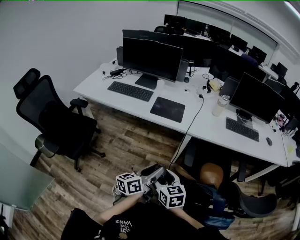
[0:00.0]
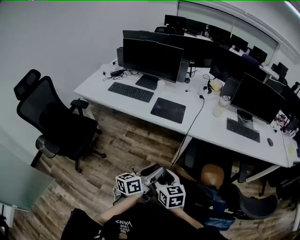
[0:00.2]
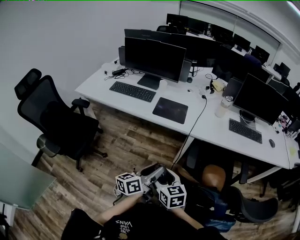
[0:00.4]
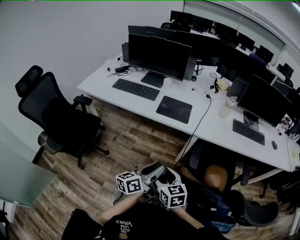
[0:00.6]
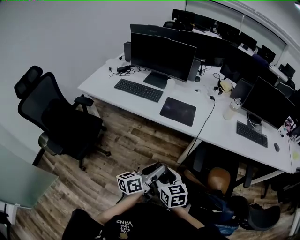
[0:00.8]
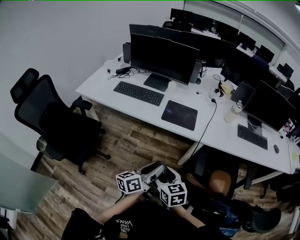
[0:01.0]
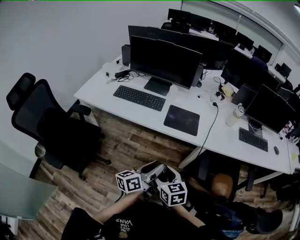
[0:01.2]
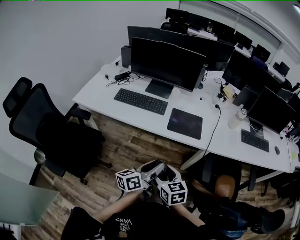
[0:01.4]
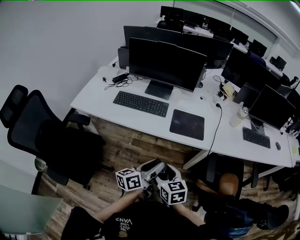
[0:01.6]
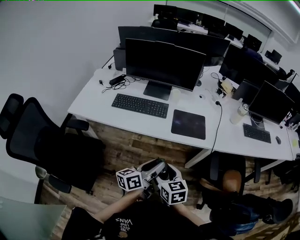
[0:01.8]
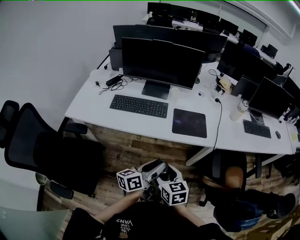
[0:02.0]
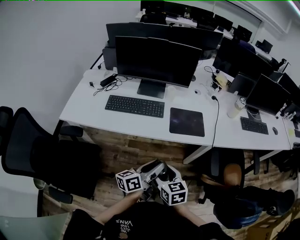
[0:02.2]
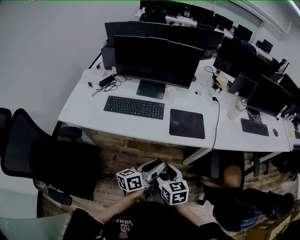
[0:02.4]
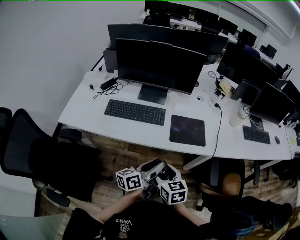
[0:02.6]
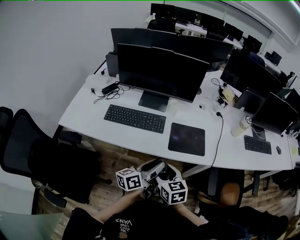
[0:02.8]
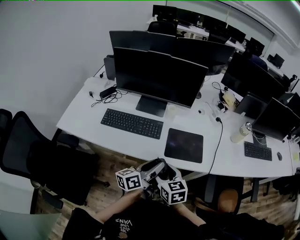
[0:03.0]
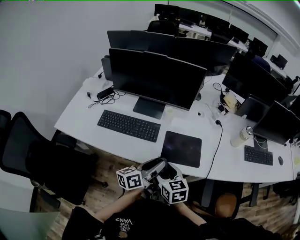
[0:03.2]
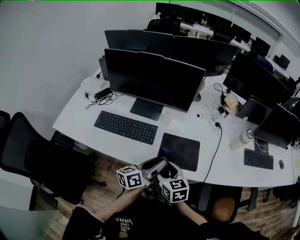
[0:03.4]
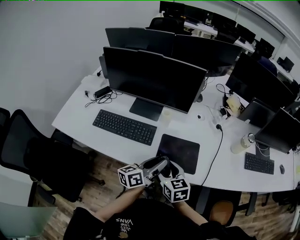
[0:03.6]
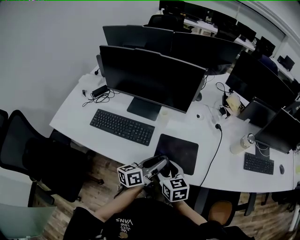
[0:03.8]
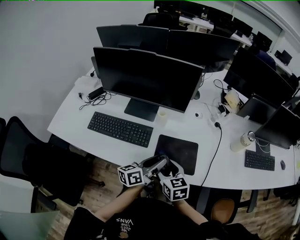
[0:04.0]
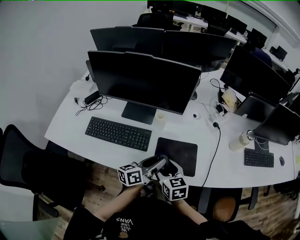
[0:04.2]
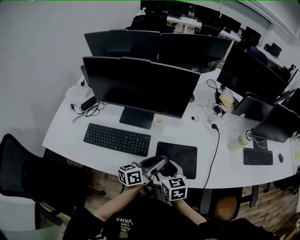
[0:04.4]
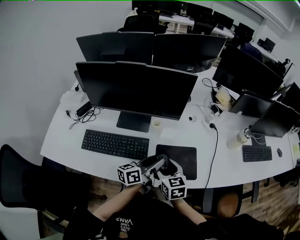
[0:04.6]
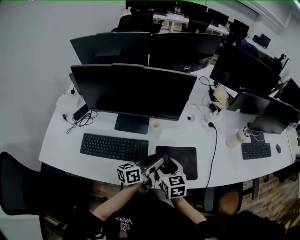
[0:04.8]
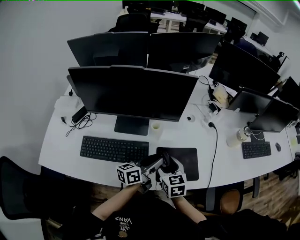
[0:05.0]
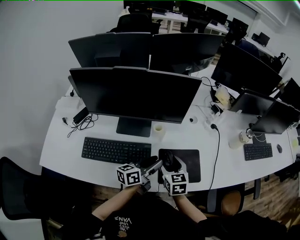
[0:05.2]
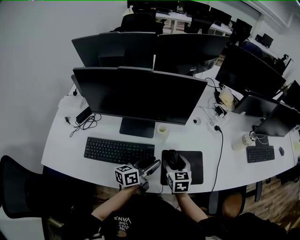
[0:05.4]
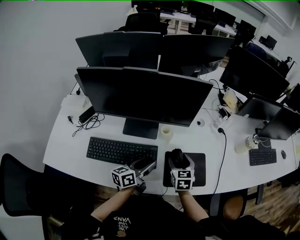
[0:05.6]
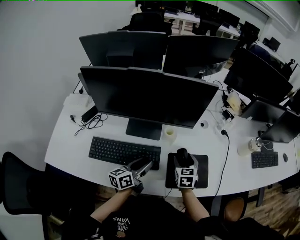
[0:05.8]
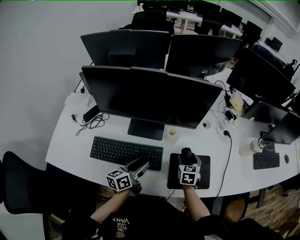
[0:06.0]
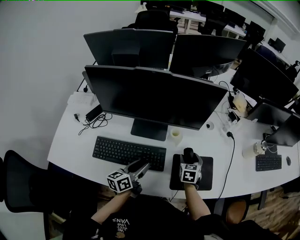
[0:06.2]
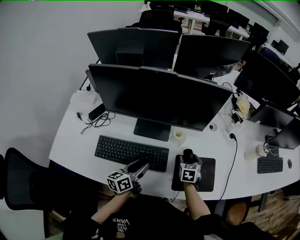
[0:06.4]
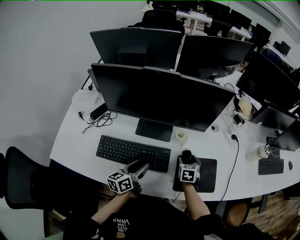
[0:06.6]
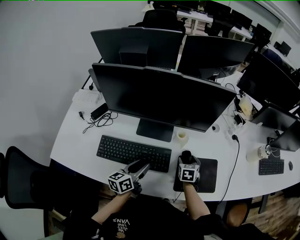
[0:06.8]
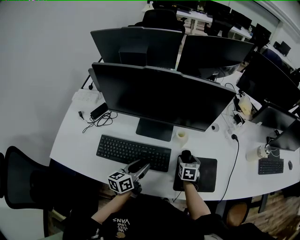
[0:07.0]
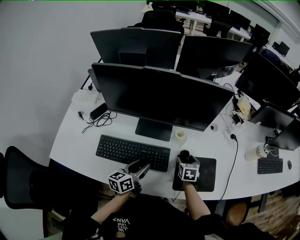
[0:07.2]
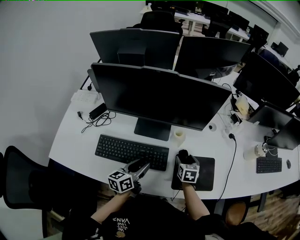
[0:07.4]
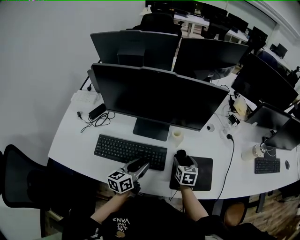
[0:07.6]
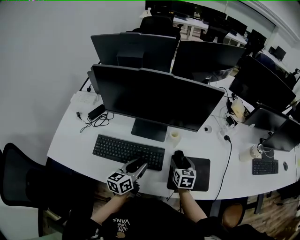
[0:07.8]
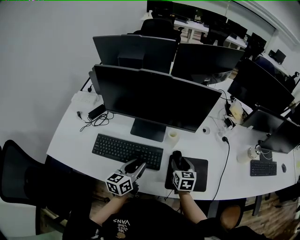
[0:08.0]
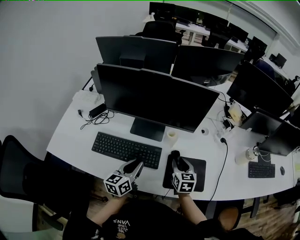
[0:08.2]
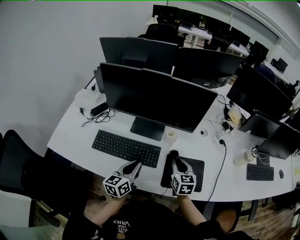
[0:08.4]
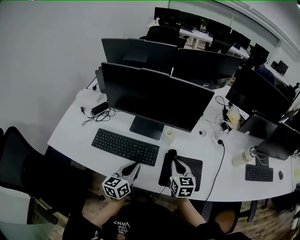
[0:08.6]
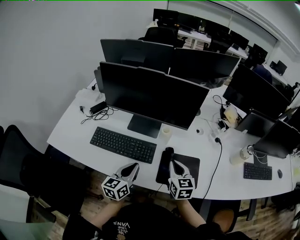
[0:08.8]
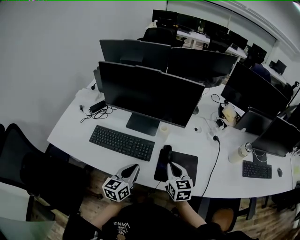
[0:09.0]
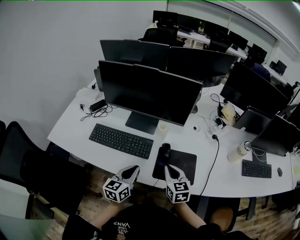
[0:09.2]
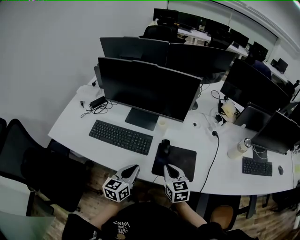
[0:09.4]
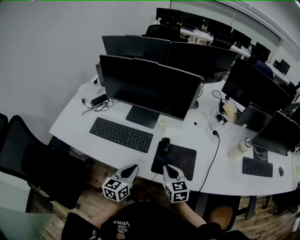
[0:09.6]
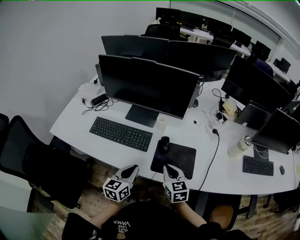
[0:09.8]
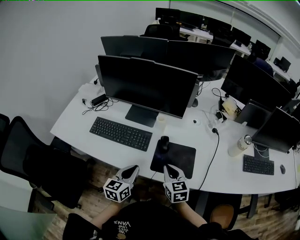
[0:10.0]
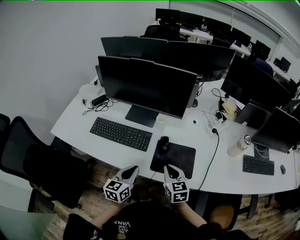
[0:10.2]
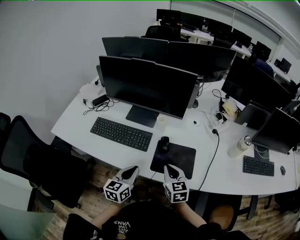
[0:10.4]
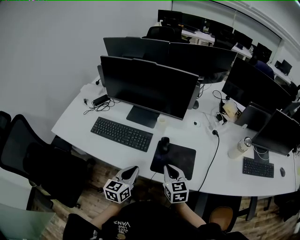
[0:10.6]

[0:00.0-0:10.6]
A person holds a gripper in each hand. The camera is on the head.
0.0 to 1.6 s: The grippers both shift to the left and forward by roughly 25 cm.
1.6 to 3.0 s: The two grippers go some 20 cm forward.
3.0 to 4.6 s: Both grippers move forward, roughly 20 cm.
4.6 to 6.0 s: The right gripper shifts approximately 15 cm forward and downward, and swivels approximately 20 degrees. The left gripper moves to the left, some 15 cm.
7.6 to 9.0 s: The right gripper is displaced upward and backward by roughly 15 cm, turns by roughly 20 degrees, and closes, while the left gripper goes roughly 10 cm backward and to the right, and closes its fingers.
9.0 to 10.6 s: The grippers both shift backward by roughly 5 cm.

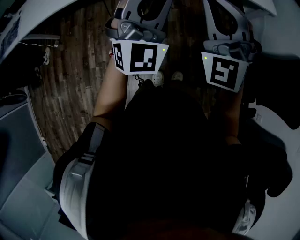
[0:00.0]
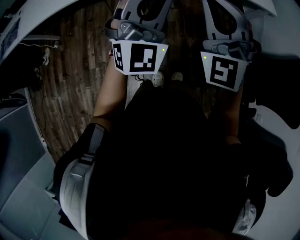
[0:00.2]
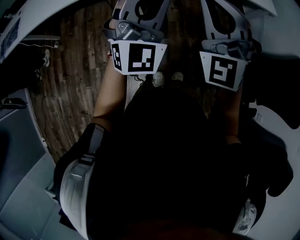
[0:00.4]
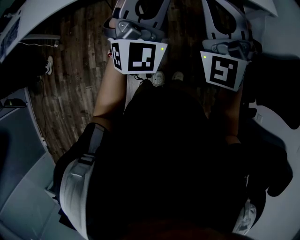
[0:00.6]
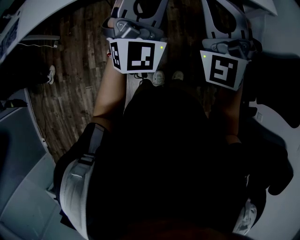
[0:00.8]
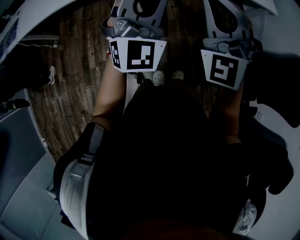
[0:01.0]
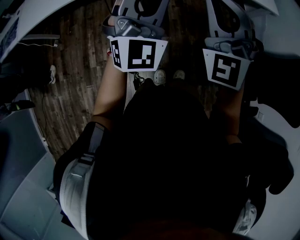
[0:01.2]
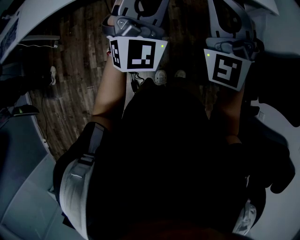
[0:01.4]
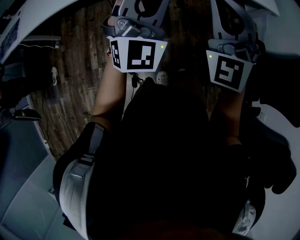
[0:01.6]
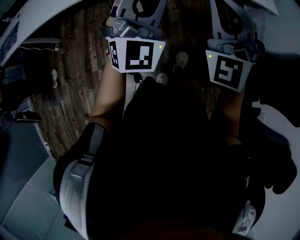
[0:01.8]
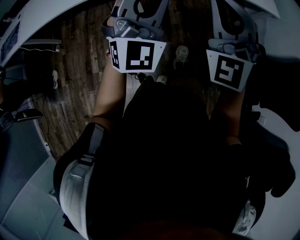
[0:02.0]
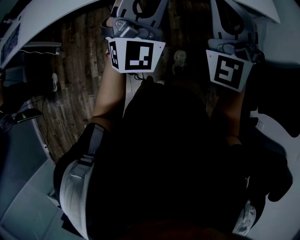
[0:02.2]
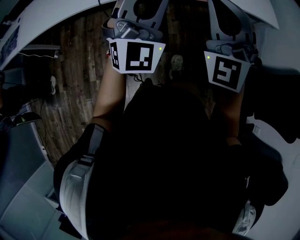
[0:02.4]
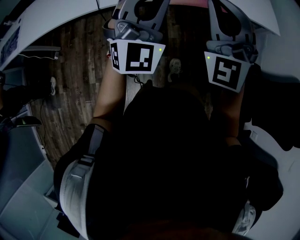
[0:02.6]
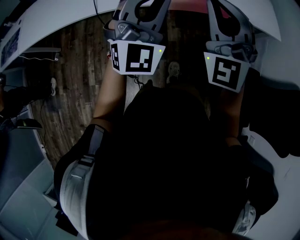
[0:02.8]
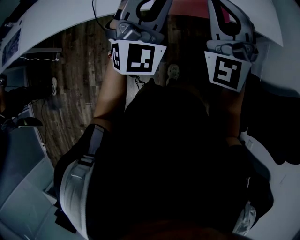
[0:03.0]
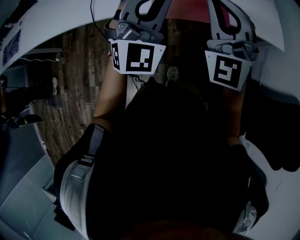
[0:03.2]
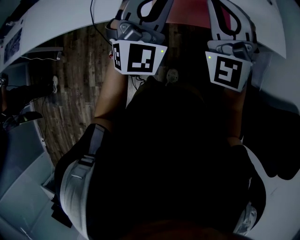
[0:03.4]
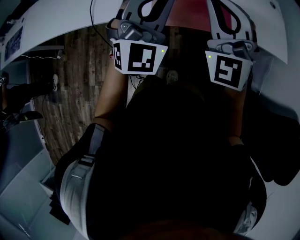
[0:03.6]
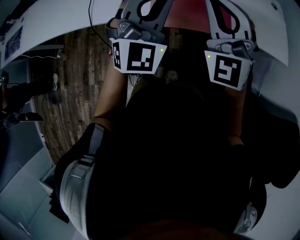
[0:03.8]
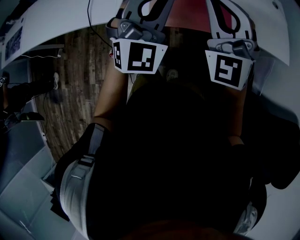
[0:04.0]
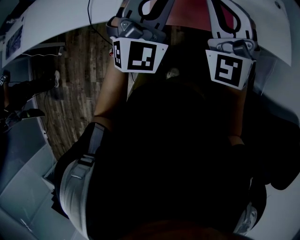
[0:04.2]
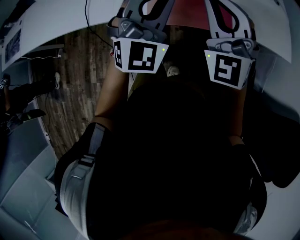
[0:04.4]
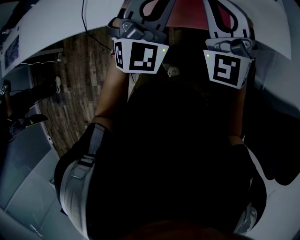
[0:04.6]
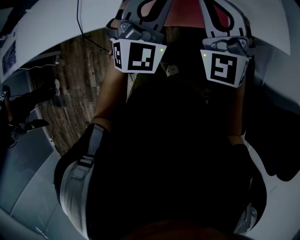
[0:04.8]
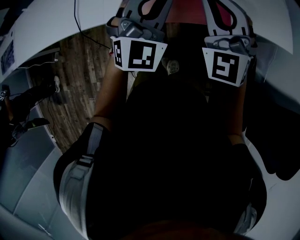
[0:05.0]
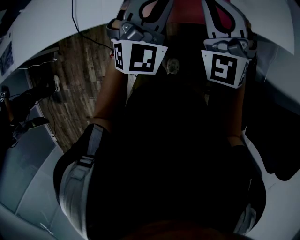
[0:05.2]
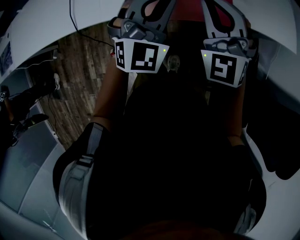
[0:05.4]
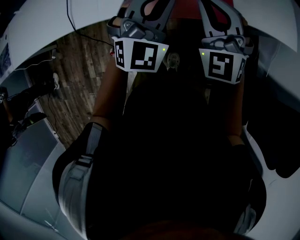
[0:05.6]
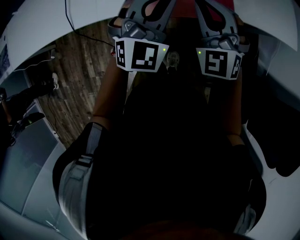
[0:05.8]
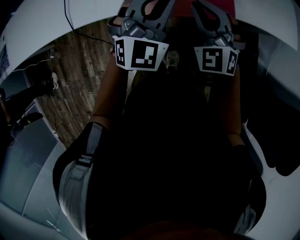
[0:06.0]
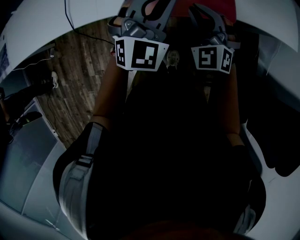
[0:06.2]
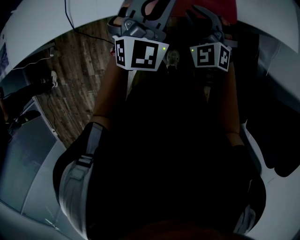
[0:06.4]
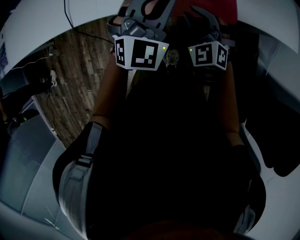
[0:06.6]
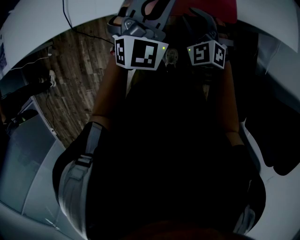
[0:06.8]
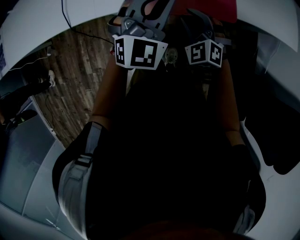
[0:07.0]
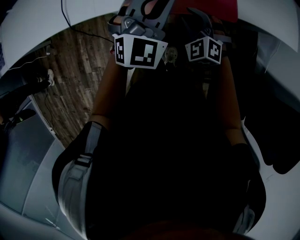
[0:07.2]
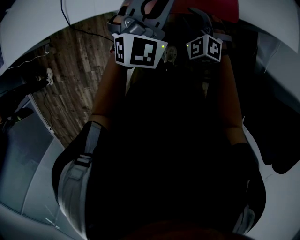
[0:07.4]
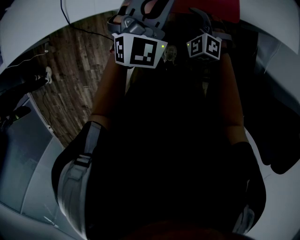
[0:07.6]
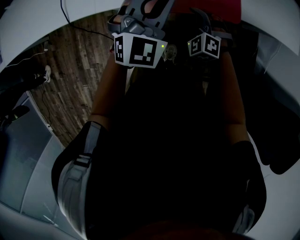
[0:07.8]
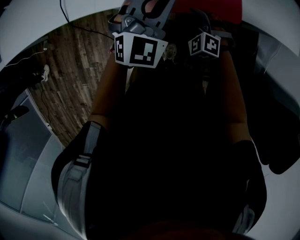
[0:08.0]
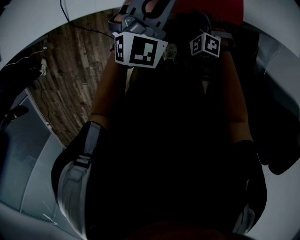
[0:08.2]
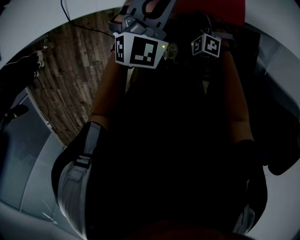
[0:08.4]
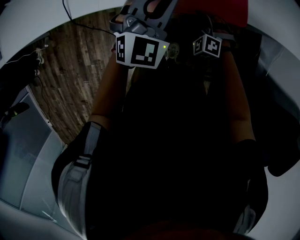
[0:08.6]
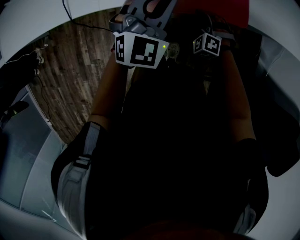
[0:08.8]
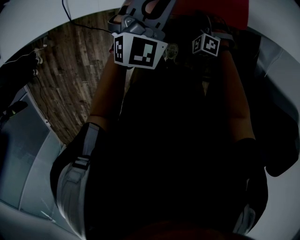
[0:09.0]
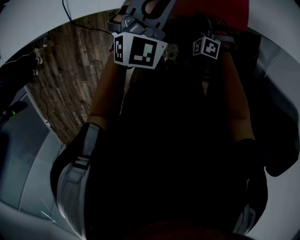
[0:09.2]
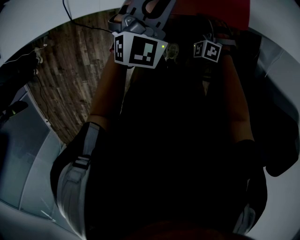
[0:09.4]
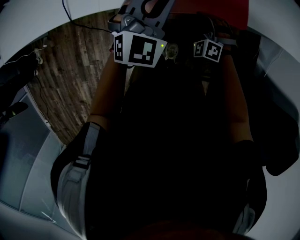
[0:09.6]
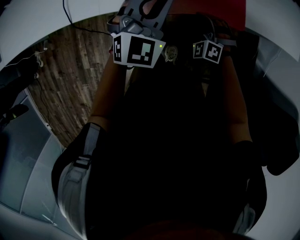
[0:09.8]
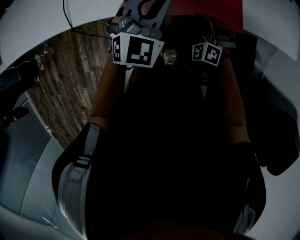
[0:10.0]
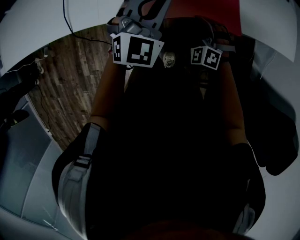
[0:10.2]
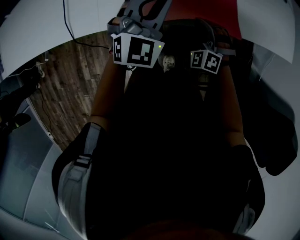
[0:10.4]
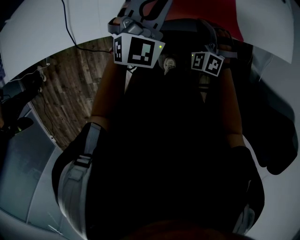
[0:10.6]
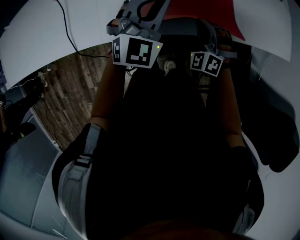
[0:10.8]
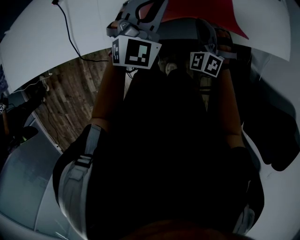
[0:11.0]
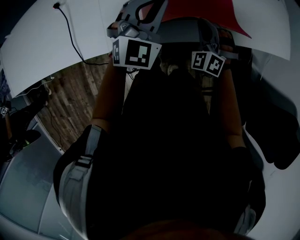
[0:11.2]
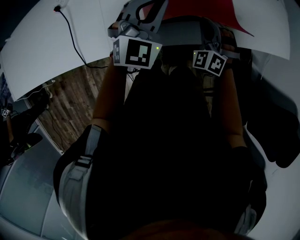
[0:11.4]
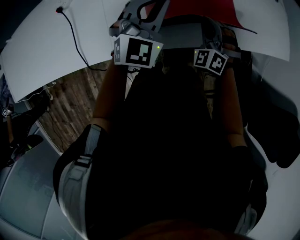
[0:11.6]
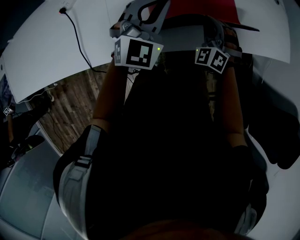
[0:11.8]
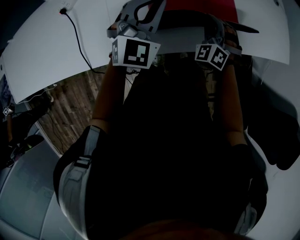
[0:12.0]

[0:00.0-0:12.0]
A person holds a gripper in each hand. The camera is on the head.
0.0 to 1.6 s: The grippers stay close to where they were, moving slightly.
1.6 to 3.0 s: Both grippers travel together forward, some 25 cm.
3.0 to 4.4 s: Both grippers travel together forward, roughly 15 cm.
4.4 to 6.0 s: The left gripper moves downward and forward, about 10 cm. The right gripper goes roughly 15 cm downward, and swivels about 20 degrees.
6.0 to 7.6 s: The right gripper goes approximately 15 cm downward, rotates roughly 20 degrees, and opens.
7.6 to 9.0 s: The right gripper goes approximately 10 cm downward.
9.0 to 10.4 s: The right gripper shifts approximately 15 cm upward and forward, and closes up. The left gripper travels forward by about 5 cm.
10.4 to 12.0 s: The right gripper travels forward and upward by approximately 15 cm, while the left gripper goes some 10 cm to the left and forward.

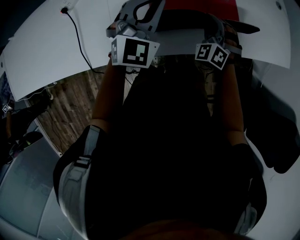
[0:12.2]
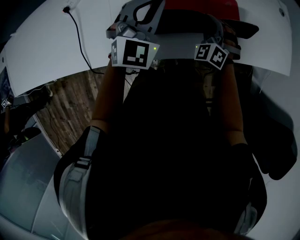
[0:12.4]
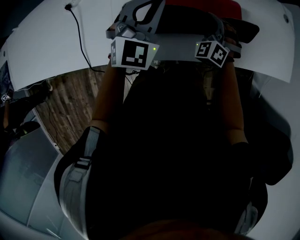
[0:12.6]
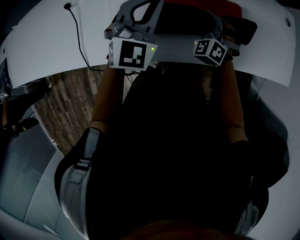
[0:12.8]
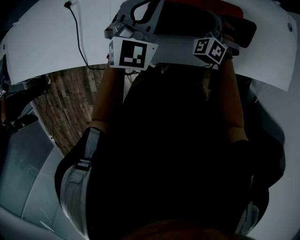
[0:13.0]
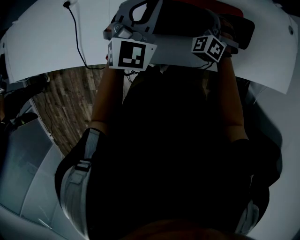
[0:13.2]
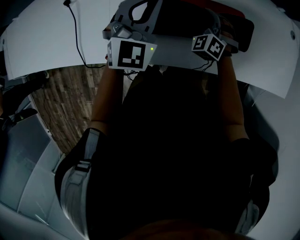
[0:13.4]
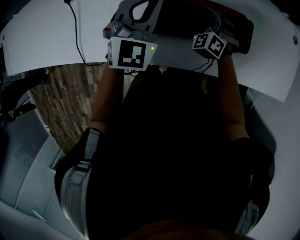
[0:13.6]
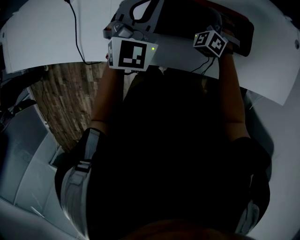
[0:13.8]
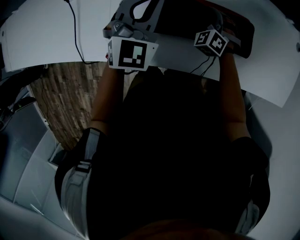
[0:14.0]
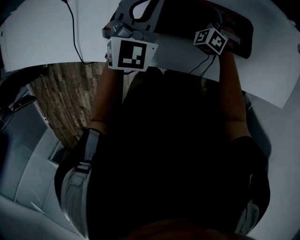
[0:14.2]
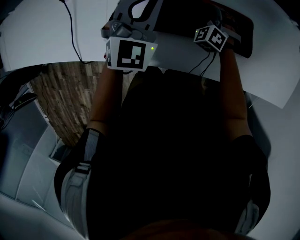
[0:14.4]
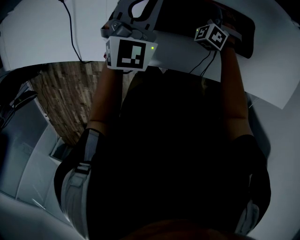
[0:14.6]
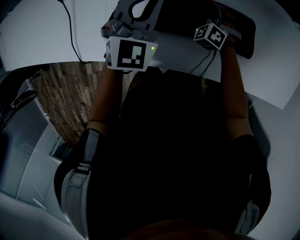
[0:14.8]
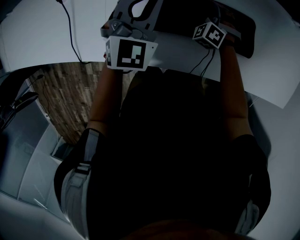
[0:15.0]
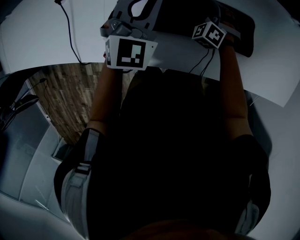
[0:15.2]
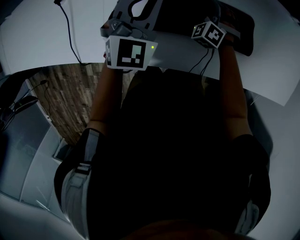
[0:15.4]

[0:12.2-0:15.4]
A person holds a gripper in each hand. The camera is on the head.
12.2 to 13.8 s: The left gripper shifts about 10 cm forward. The right gripper shifts some 15 cm forward and downward.
13.8 to 15.4 s: The right gripper shifts by some 5 cm, and opens up.
